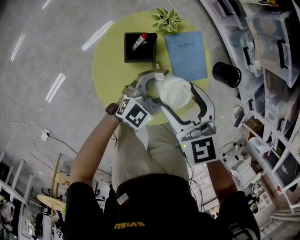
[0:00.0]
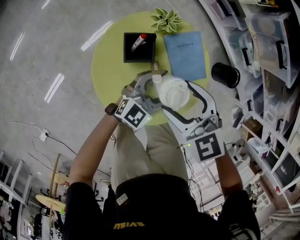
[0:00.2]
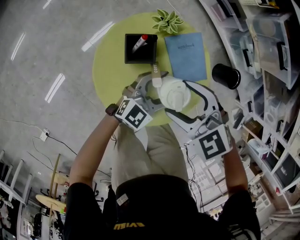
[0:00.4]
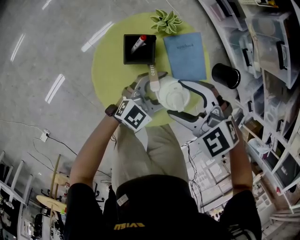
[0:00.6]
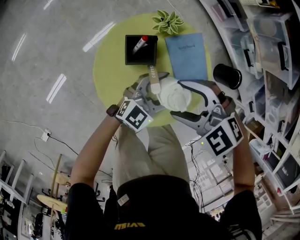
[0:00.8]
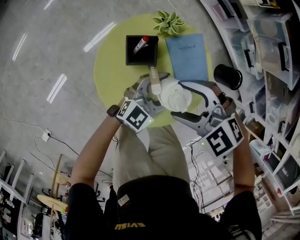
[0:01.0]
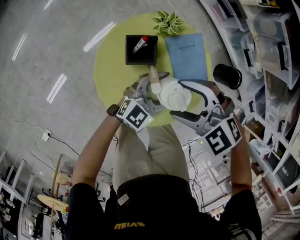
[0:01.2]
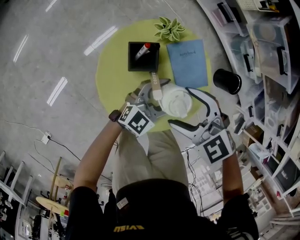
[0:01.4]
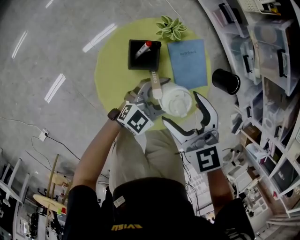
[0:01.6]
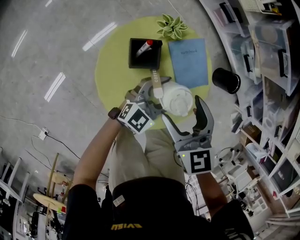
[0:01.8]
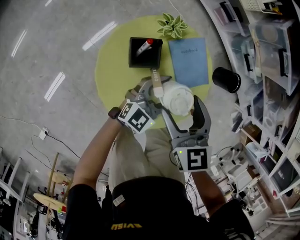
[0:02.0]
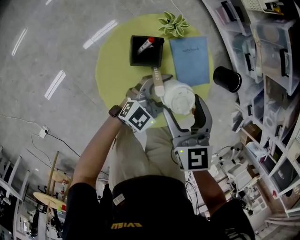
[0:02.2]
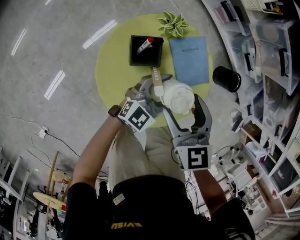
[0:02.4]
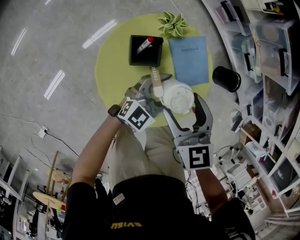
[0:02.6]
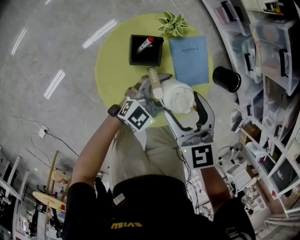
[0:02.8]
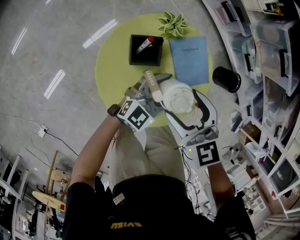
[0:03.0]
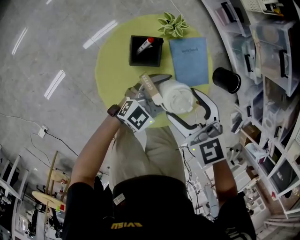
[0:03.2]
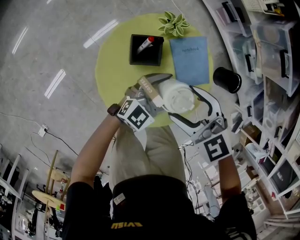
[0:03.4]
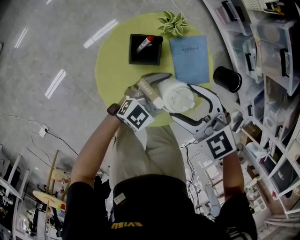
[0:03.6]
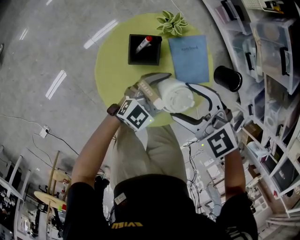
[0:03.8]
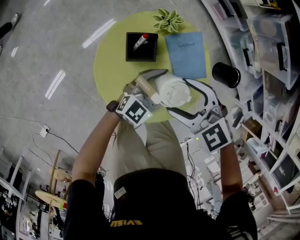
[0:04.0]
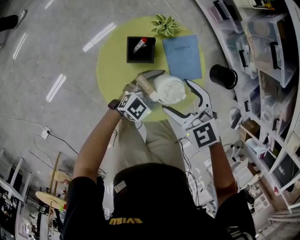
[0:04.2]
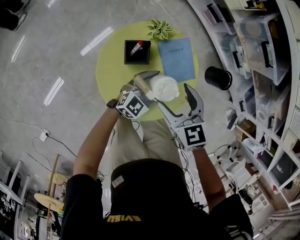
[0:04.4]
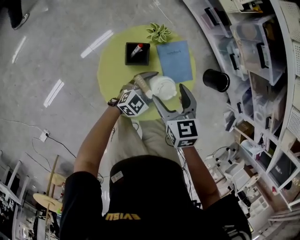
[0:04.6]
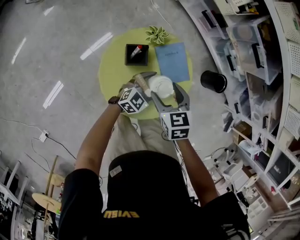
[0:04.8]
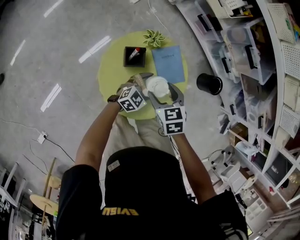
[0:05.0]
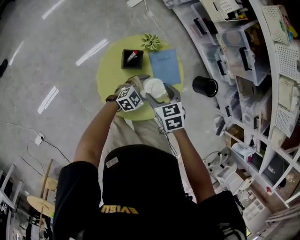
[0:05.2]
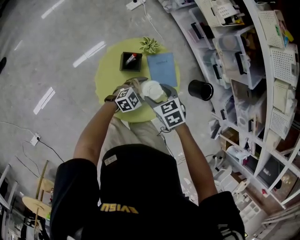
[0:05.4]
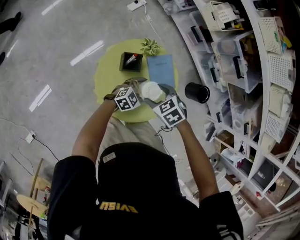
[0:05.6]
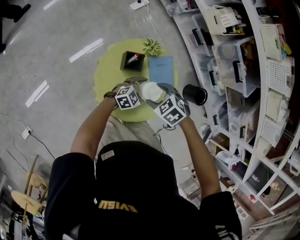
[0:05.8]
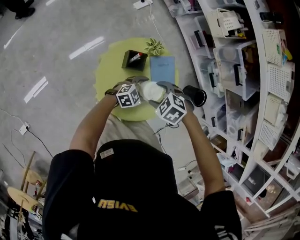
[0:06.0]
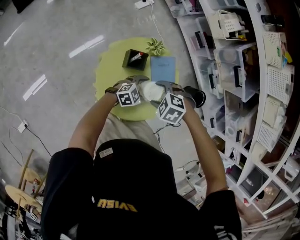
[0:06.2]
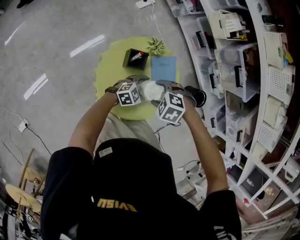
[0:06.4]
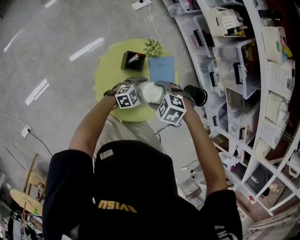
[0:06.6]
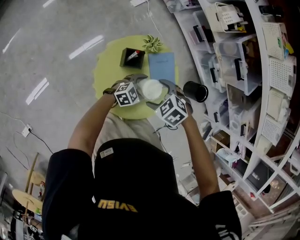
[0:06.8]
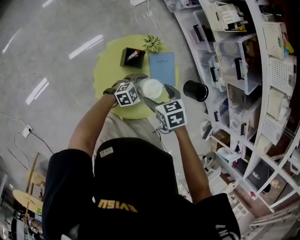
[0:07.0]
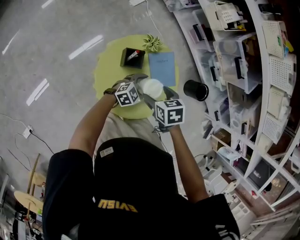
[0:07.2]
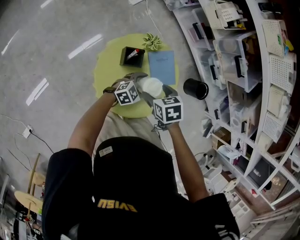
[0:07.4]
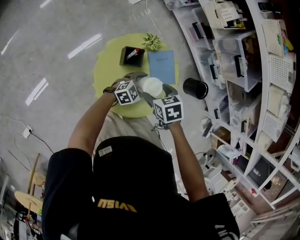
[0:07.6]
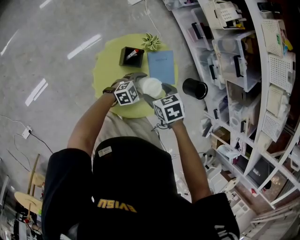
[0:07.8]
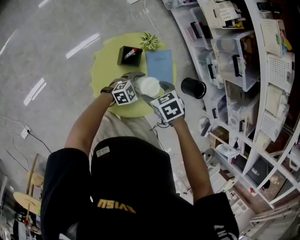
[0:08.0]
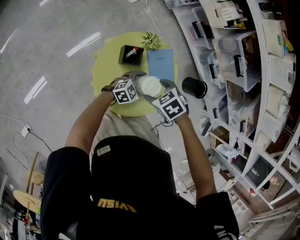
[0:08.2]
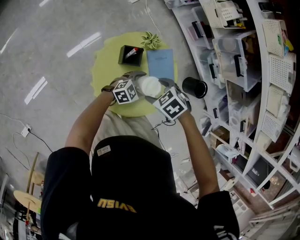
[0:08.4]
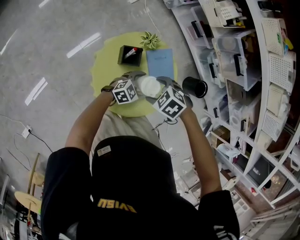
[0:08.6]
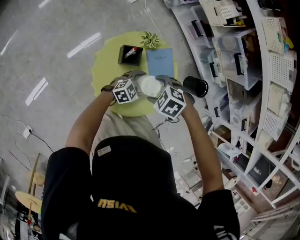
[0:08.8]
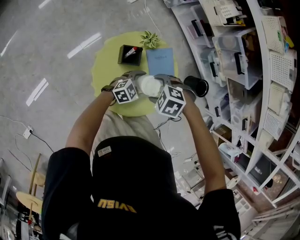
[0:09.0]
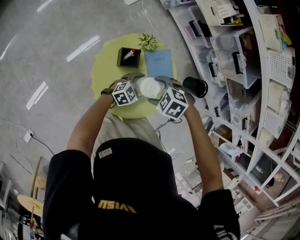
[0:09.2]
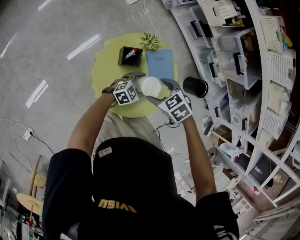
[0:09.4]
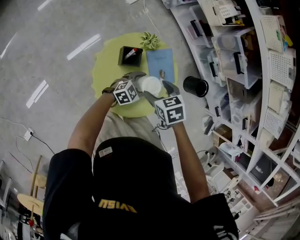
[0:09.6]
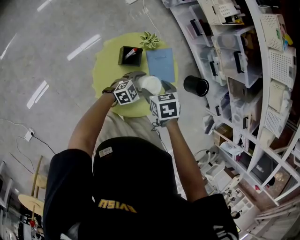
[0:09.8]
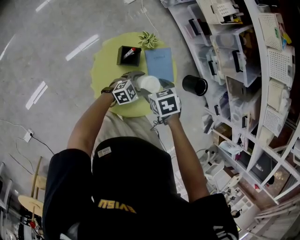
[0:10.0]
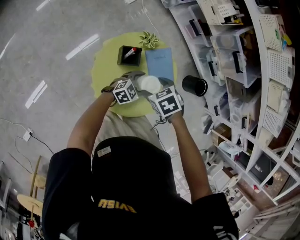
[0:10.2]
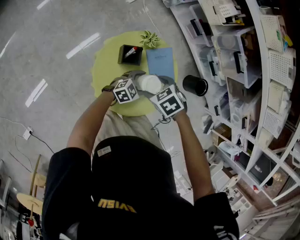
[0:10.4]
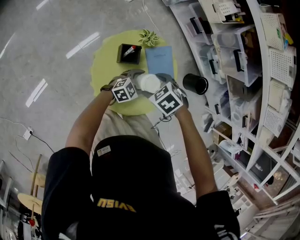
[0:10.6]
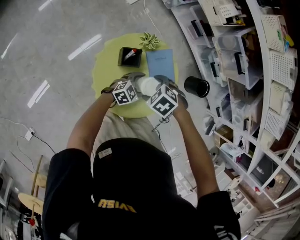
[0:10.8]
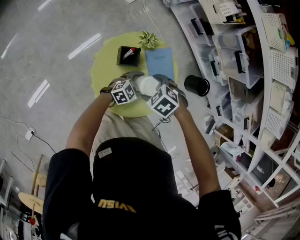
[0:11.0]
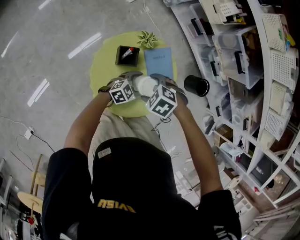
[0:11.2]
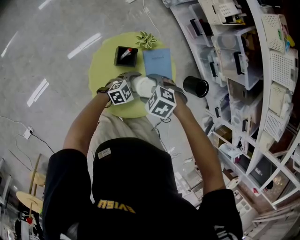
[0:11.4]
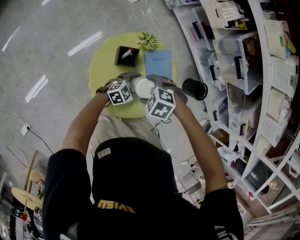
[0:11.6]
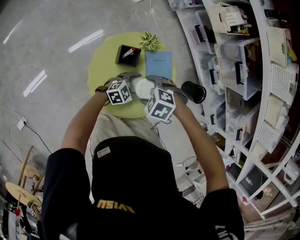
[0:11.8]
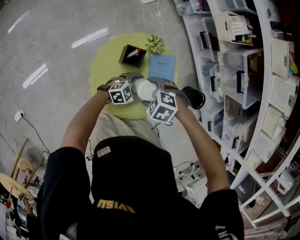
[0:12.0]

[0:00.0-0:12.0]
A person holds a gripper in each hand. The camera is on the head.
0:04.4 to 0:06.0: The right gripper angles its fingers downward, by some 40 degrees.
0:06.0 to 0:07.6: The right gripper twists roughly 50 degrees clockwise, seen from behind.
0:07.6 to 0:09.0: The right gripper rolls counterclockwise, seen from behind, by approximately 50 degrees.
0:09.0 to 0:10.4: The right gripper turns by approximately 40 degrees.
0:10.4 to 0:12.0: The right gripper twists some 40 degrees counterclockwise, seen from behind.

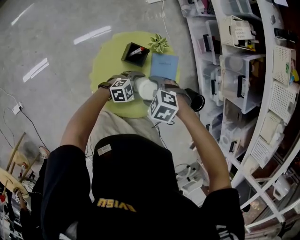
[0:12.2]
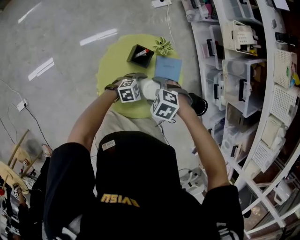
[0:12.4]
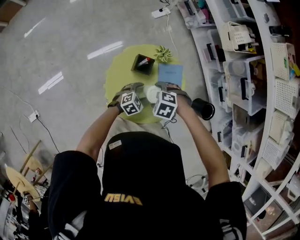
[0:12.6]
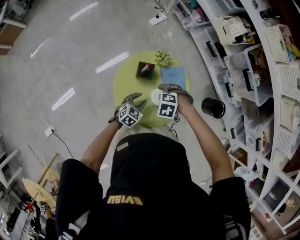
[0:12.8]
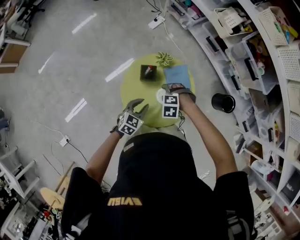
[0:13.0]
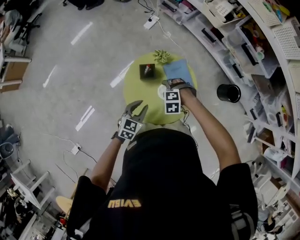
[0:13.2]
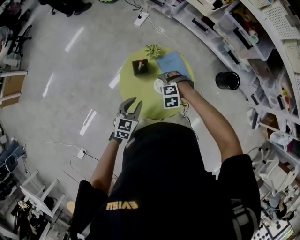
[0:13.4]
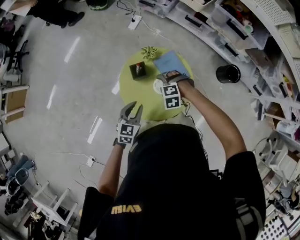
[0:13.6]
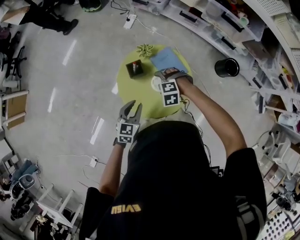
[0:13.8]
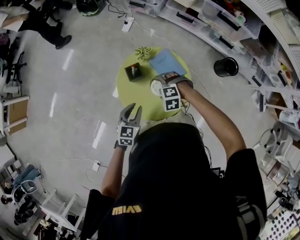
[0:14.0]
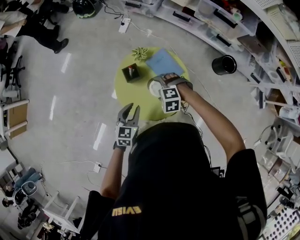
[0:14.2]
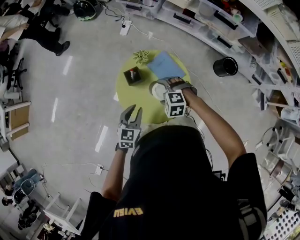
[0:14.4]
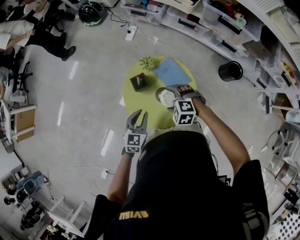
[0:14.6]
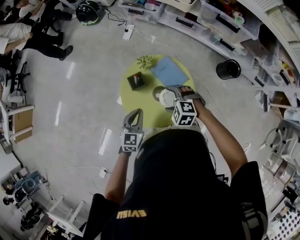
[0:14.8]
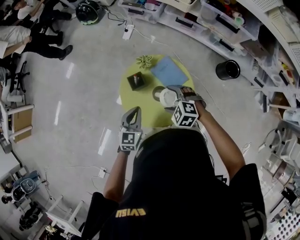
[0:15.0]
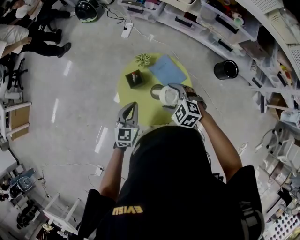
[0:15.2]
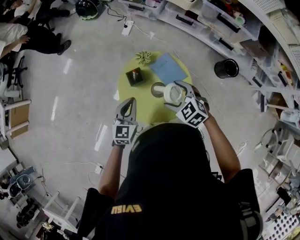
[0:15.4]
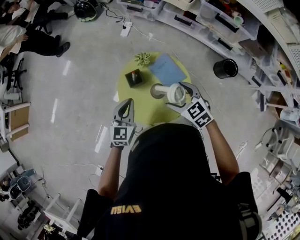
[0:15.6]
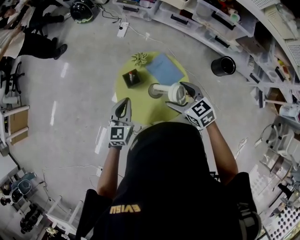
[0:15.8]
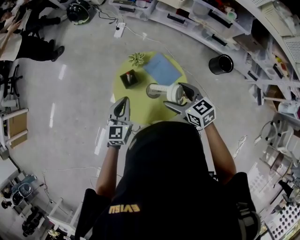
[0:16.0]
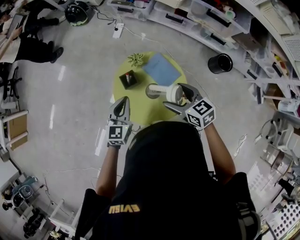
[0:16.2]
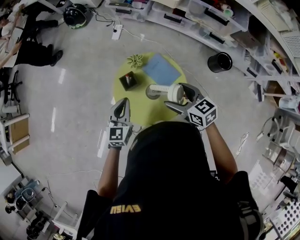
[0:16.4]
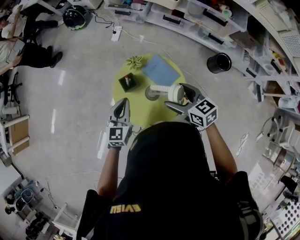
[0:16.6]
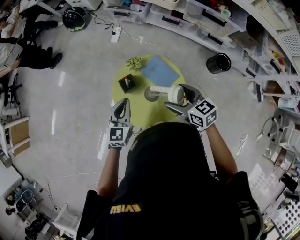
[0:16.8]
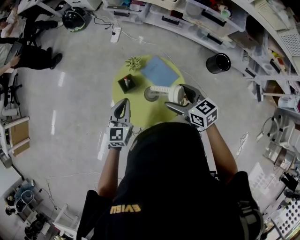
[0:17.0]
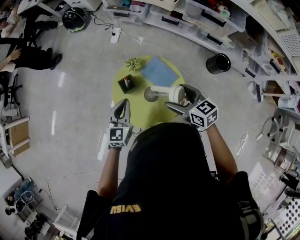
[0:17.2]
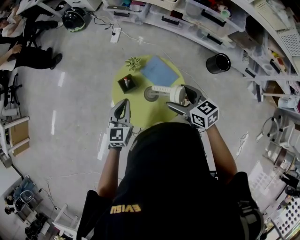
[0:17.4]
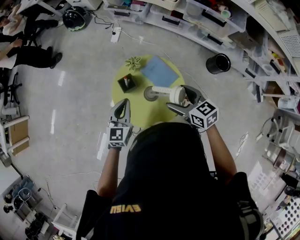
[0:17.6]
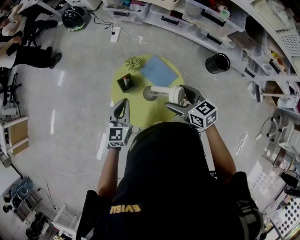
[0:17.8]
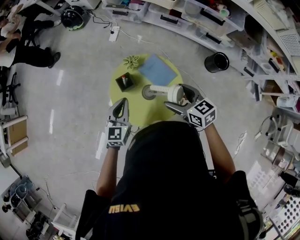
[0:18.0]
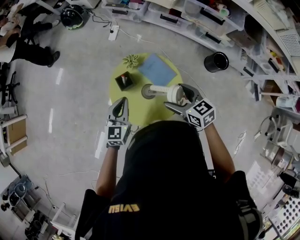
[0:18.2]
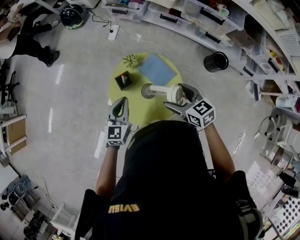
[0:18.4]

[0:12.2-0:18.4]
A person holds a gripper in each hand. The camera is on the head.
0:12.2 to 0:13.8: The left gripper goes about 15 cm upward, turns by approximately 30 degrees, and closes up.
0:13.8 to 0:15.4: The left gripper goes about 10 cm upward and forward, while the right gripper is displaced upward by roughly 10 cm, and turns by about 50 degrees.
0:15.4 to 0:16.8: The right gripper changes place by some 5 cm, and swivels some 40 degrees.
0:16.8 to 0:18.4: The grippers make only small movements.

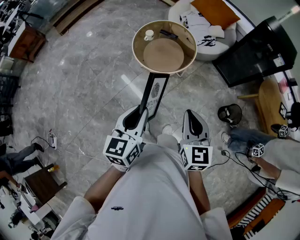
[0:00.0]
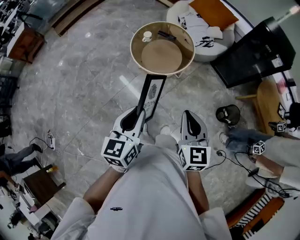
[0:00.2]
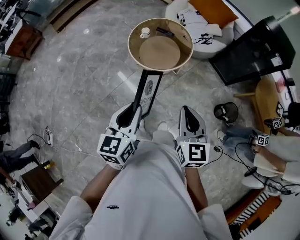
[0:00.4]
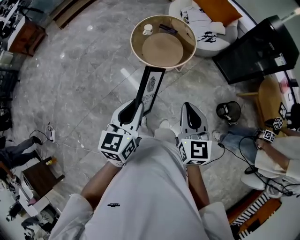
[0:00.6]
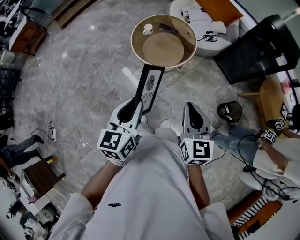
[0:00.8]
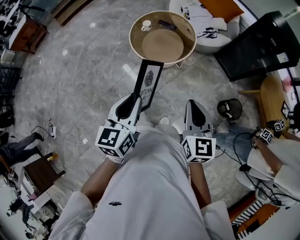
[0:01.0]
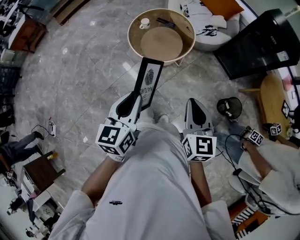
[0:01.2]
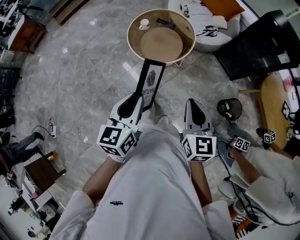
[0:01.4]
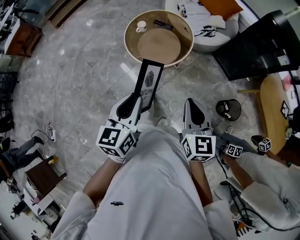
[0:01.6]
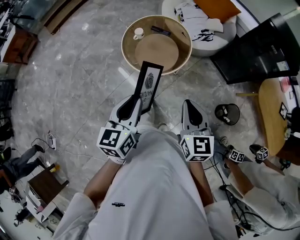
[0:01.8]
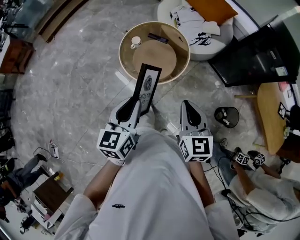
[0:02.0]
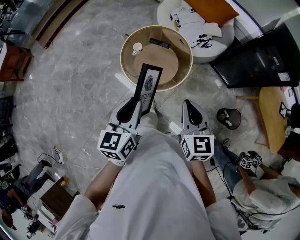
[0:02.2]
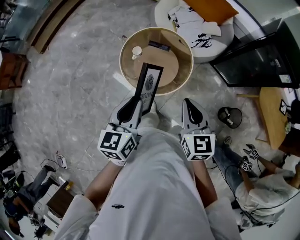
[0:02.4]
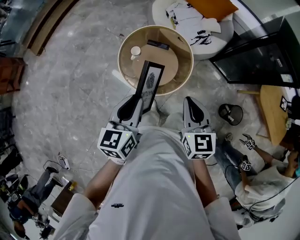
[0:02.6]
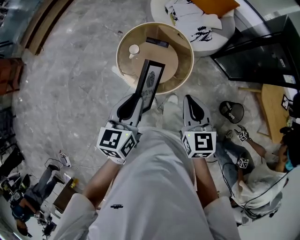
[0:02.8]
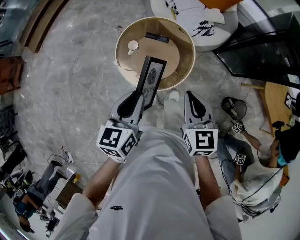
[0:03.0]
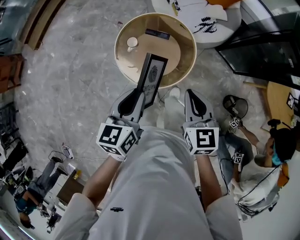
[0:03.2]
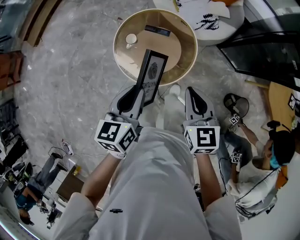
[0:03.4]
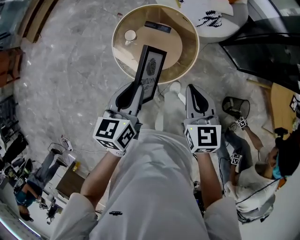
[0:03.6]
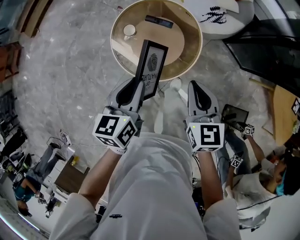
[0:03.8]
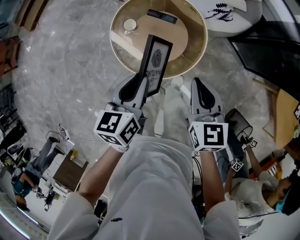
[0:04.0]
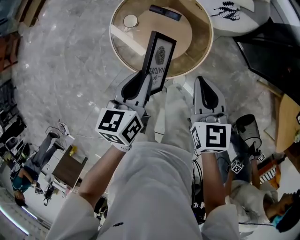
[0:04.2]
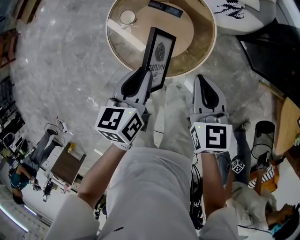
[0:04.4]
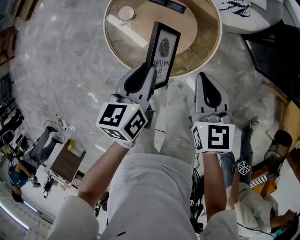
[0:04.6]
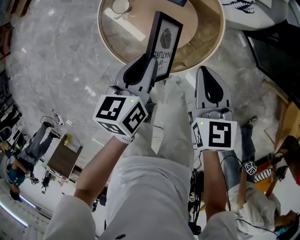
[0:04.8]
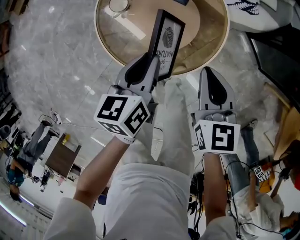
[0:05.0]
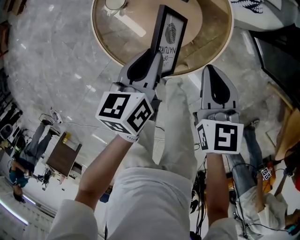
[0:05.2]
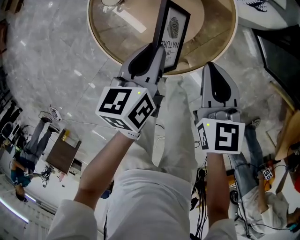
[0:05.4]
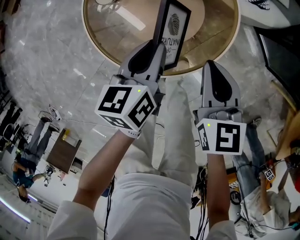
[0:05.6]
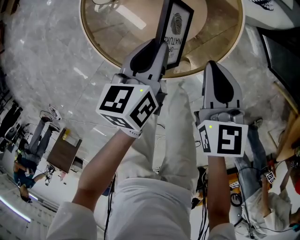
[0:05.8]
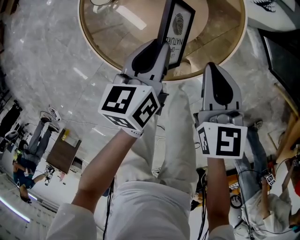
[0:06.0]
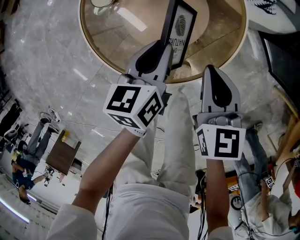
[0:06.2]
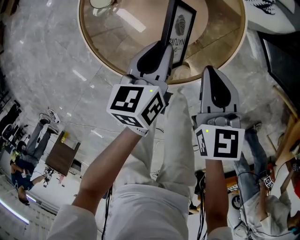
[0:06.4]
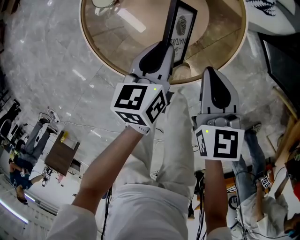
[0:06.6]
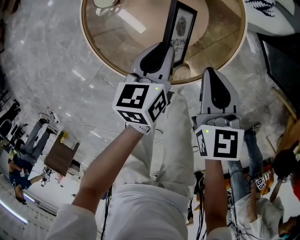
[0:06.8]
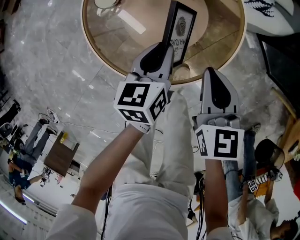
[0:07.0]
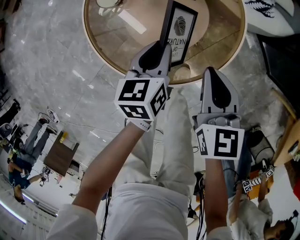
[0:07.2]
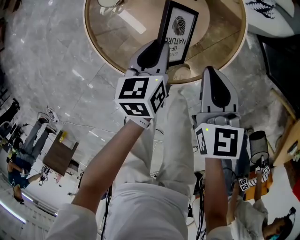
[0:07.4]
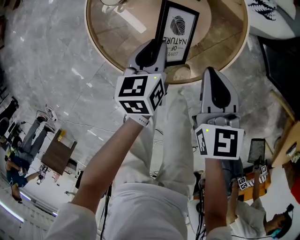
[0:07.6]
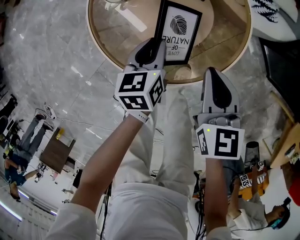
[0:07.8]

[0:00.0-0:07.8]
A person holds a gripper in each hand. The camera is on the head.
0:00.0 to 0:01.6: The left gripper heads forward, covering about 5 cm. Meanwhile the right gripper moves forward and to the right, some 10 cm.
0:01.6 to 0:03.2: Both grippers move forward, approximately 30 cm.
0:03.2 to 0:04.6: The left gripper heads downward, covering about 25 cm; the right gripper goes roughly 20 cm downward and forward.
0:04.6 to 0:06.2: The two grippers go some 20 cm downward.
0:06.2 to 0:07.8: The left gripper moves approximately 5 cm.
